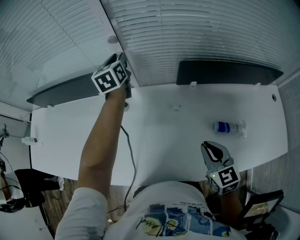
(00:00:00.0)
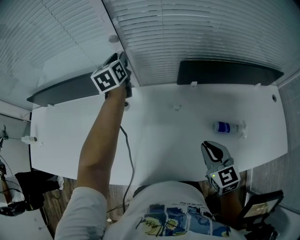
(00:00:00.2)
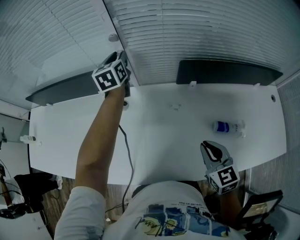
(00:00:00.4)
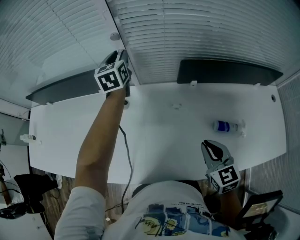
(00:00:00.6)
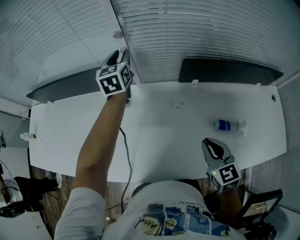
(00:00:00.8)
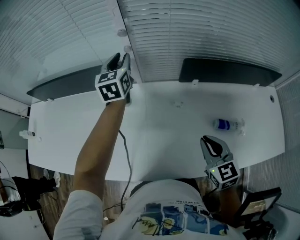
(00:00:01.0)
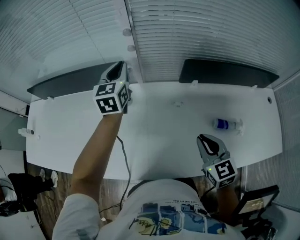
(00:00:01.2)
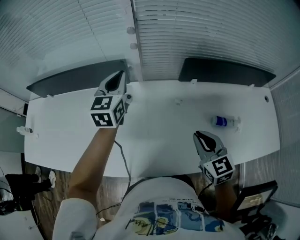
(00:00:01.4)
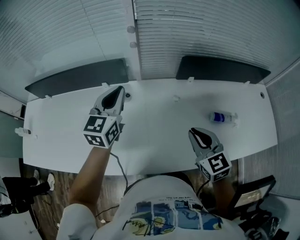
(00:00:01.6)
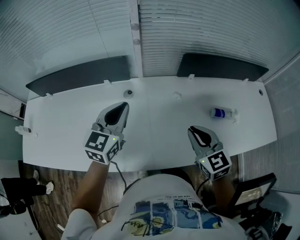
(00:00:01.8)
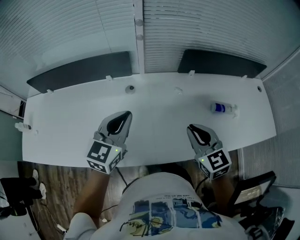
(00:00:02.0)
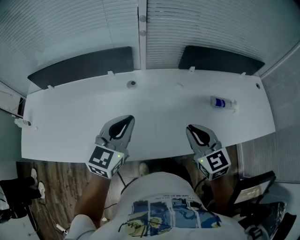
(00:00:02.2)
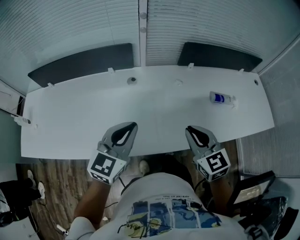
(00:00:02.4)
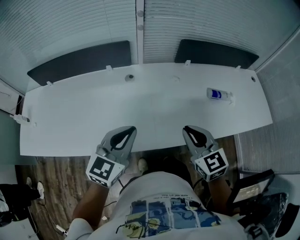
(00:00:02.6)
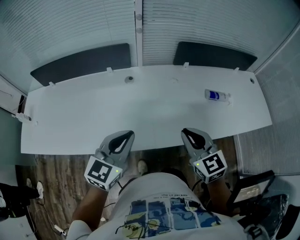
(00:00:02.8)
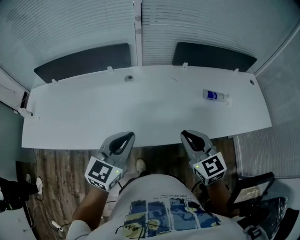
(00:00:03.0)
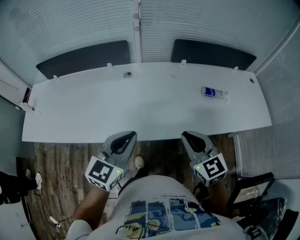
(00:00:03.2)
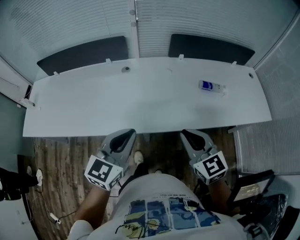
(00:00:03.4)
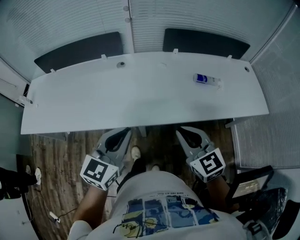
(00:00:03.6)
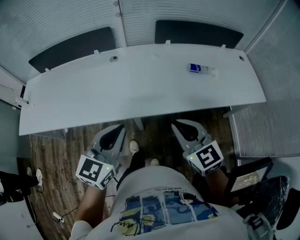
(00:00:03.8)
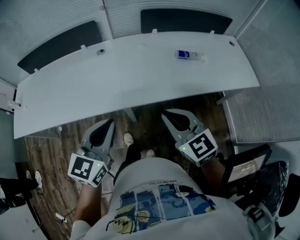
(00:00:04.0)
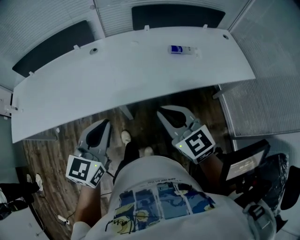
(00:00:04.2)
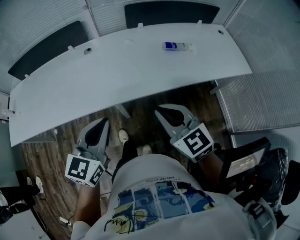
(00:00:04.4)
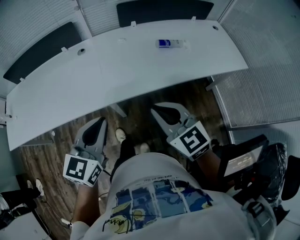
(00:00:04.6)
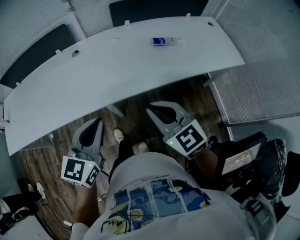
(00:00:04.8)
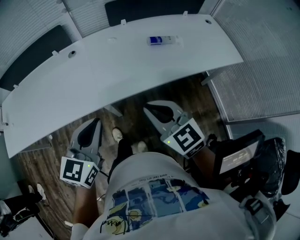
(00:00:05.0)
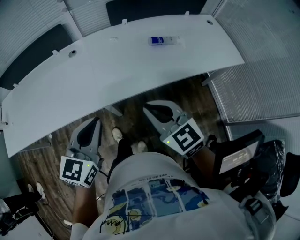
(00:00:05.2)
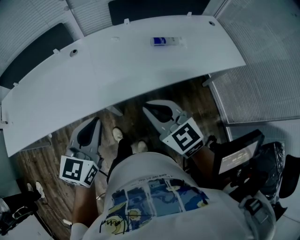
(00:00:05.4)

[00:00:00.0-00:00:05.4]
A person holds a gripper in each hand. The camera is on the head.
00:00:00.0 to 00:00:01.4: The left gripper is displaced backward by roughly 15 cm, and closes. The right gripper shifts approximately 5 cm to the left.
00:00:01.4 to 00:00:02.8: The right gripper is displaced backward and to the left by about 20 cm. Meanwhile the left gripper travels backward by some 35 cm, and rotates about 20 degrees.
00:00:02.8 to 00:00:04.0: Both grippers travel together backward and to the right, some 20 cm.
00:00:04.0 to 00:00:05.4: The left gripper changes place by roughly 5 cm.

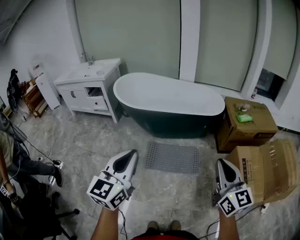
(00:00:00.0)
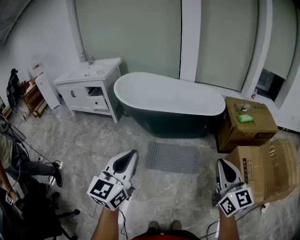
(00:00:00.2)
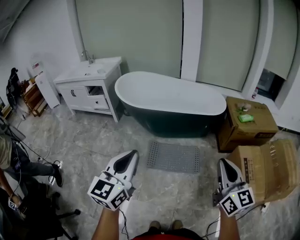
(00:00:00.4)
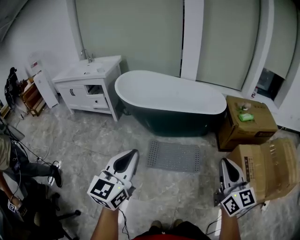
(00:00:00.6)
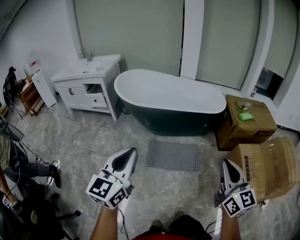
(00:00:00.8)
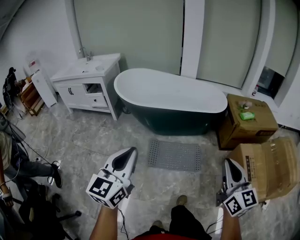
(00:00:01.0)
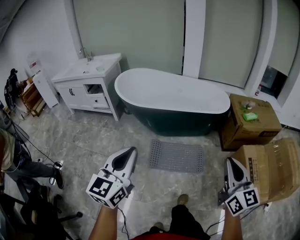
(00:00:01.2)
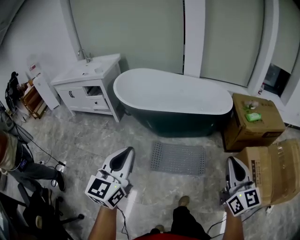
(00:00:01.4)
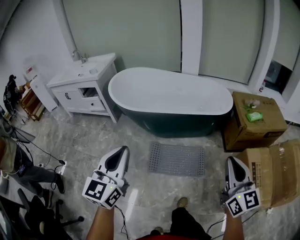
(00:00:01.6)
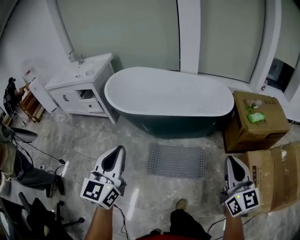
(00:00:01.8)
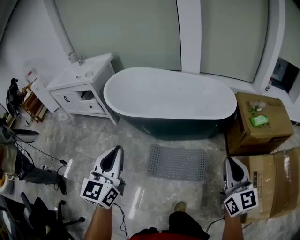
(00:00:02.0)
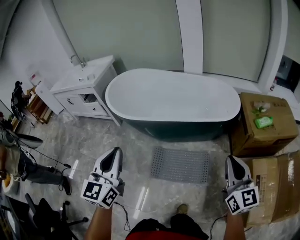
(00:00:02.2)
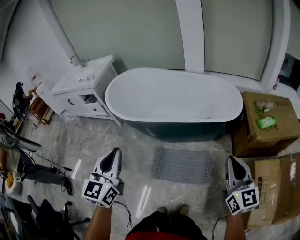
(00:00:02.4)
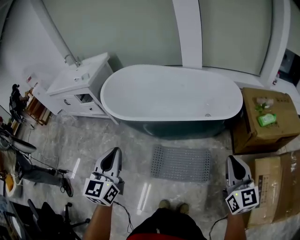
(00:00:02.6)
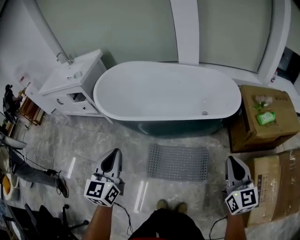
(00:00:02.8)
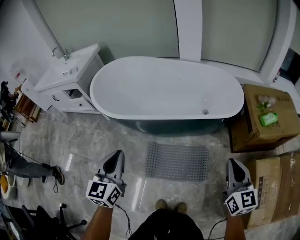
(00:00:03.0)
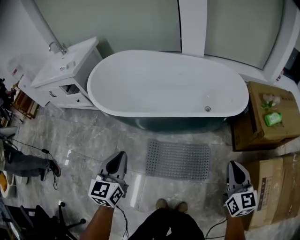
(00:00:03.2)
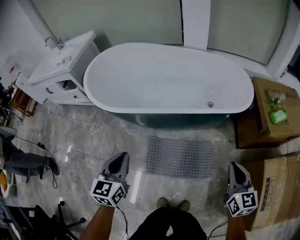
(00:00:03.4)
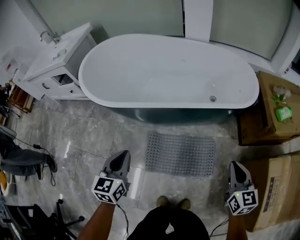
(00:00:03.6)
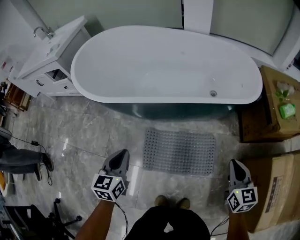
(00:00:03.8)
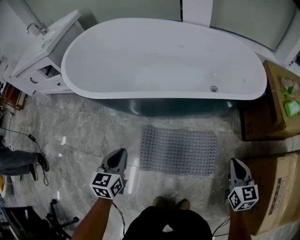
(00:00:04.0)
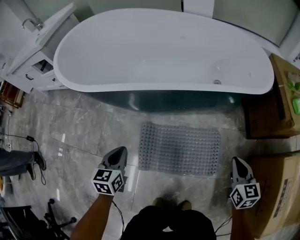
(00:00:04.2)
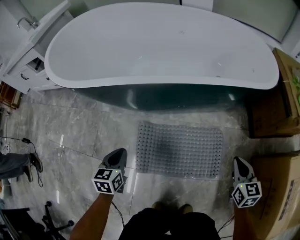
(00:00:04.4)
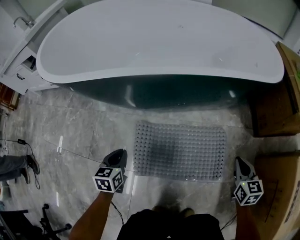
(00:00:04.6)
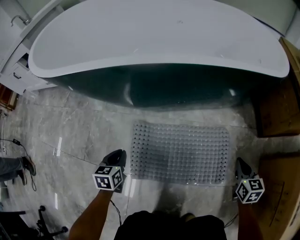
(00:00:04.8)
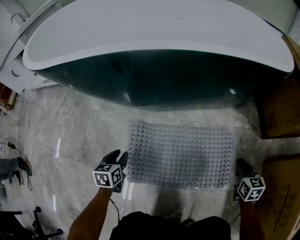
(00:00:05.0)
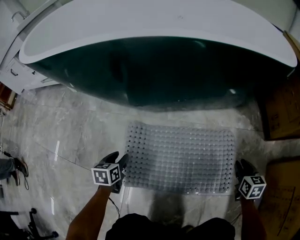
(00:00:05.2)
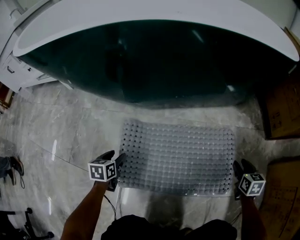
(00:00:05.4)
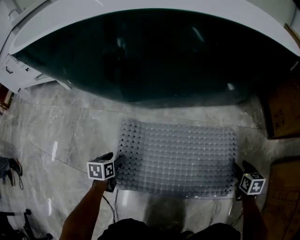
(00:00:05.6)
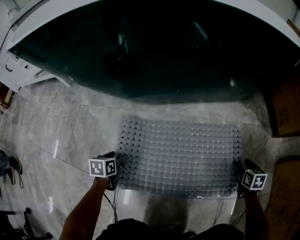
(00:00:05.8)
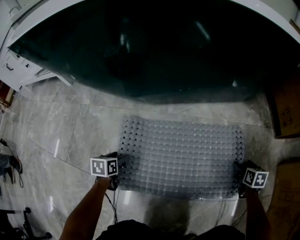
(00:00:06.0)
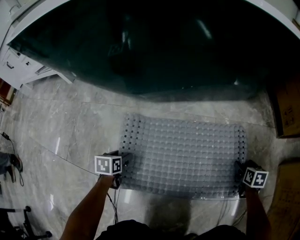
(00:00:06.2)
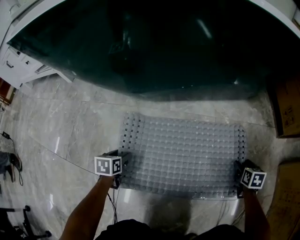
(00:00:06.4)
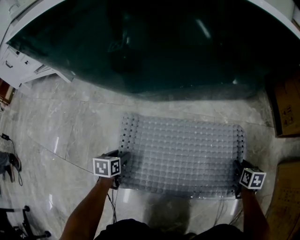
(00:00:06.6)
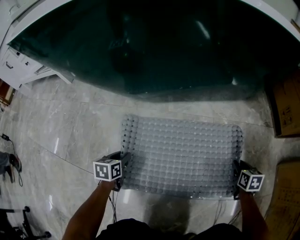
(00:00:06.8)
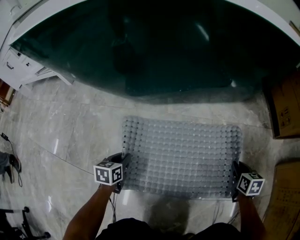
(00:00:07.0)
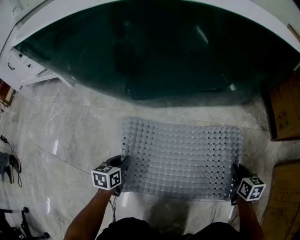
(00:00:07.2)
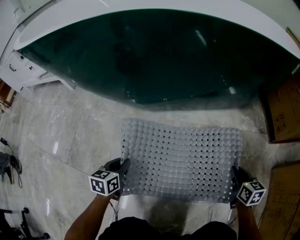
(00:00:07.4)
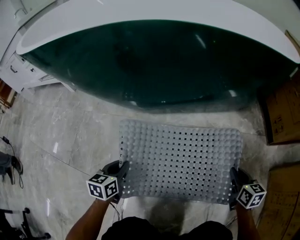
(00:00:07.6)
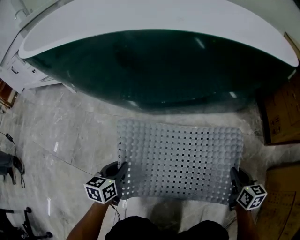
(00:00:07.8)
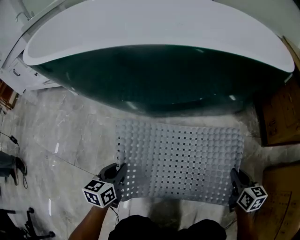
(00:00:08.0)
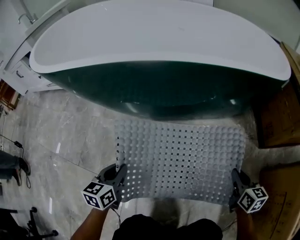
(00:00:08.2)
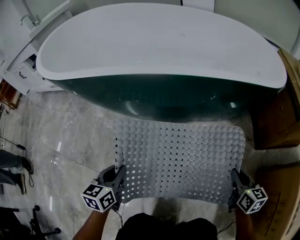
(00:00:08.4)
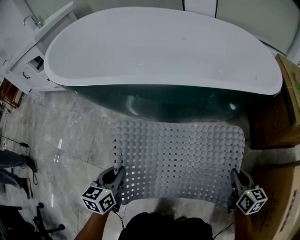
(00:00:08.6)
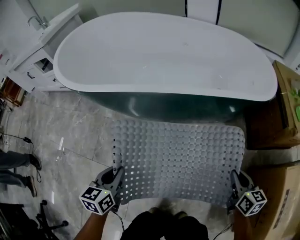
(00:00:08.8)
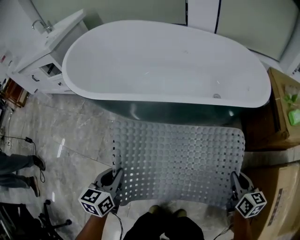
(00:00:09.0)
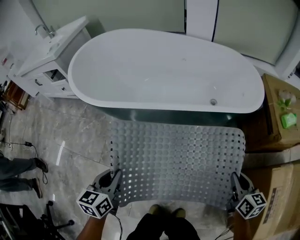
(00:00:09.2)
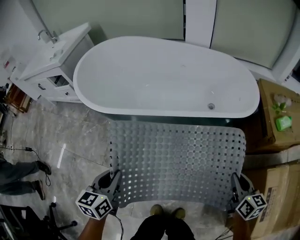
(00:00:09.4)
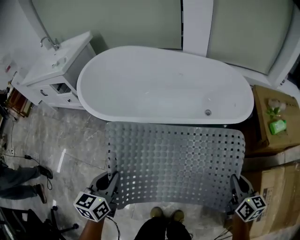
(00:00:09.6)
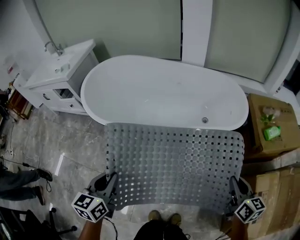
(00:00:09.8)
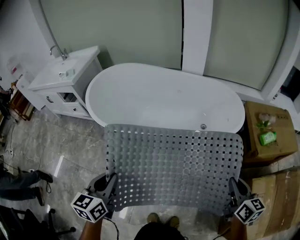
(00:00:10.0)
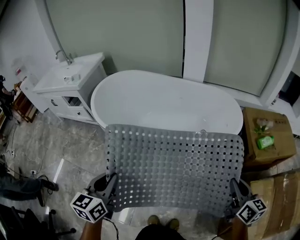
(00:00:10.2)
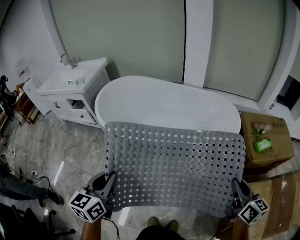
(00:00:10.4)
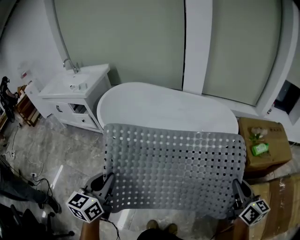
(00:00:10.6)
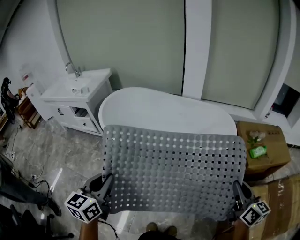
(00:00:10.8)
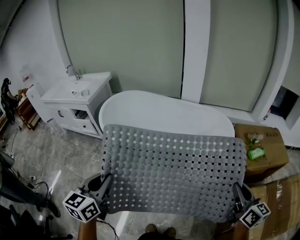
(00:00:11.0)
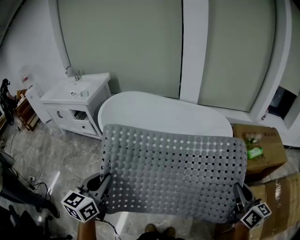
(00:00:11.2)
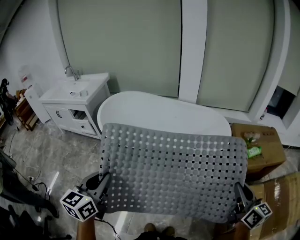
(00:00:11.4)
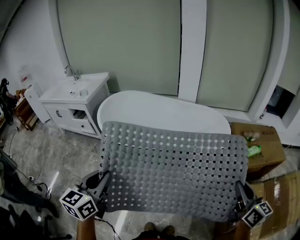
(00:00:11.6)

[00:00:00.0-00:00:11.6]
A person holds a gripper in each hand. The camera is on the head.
00:00:00.0 to 00:00:01.4: The right gripper is displaced forward by about 10 cm; the left gripper goes roughly 10 cm forward and to the left.
00:00:01.4 to 00:00:02.8: The right gripper moves forward, to the right and downward, about 30 cm; the left gripper goes some 25 cm forward.
00:00:02.8 to 00:00:04.4: The grippers both shift downward by about 50 cm. The right gripper changes its angle by roughly 30 degrees; the left gripper points its fingers roughly 30 degrees further downward.
00:00:04.4 to 00:00:05.8: The two grippers go approximately 40 cm downward. The left gripper rotates some 20 degrees, and opens up. Meanwhile the right gripper rotates roughly 20 degrees, and opens.
00:00:05.8 to 00:00:07.2: The left gripper moves about 5 cm, and closes up. Meanwhile the right gripper travels to the left and upward by roughly 5 cm, and closes its fingers.
00:00:07.2 to 00:00:08.8: The grippers both shift upward by about 40 cm.
00:00:08.8 to 00:00:10.2: The two grippers go some 40 cm upward.
00:00:10.2 to 00:00:11.6: Both grippers travel together upward and backward, roughly 15 cm.

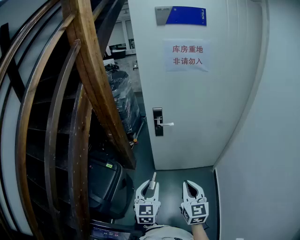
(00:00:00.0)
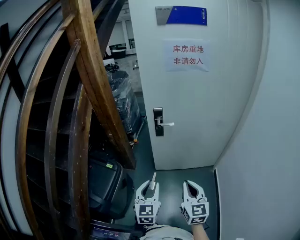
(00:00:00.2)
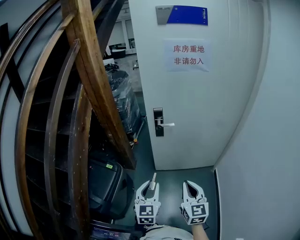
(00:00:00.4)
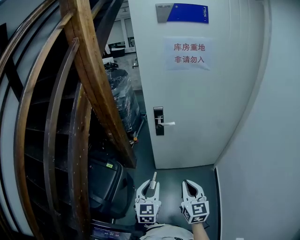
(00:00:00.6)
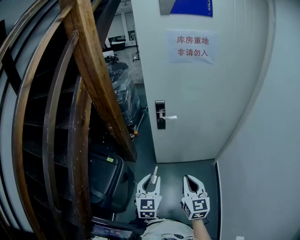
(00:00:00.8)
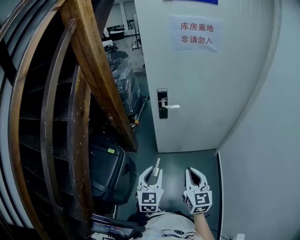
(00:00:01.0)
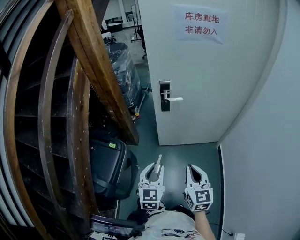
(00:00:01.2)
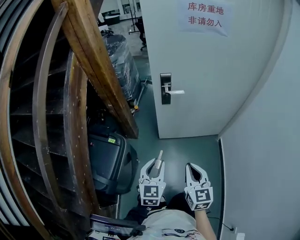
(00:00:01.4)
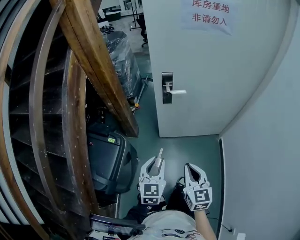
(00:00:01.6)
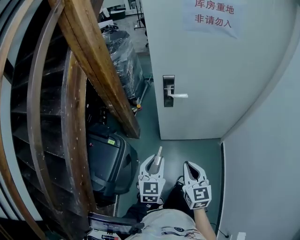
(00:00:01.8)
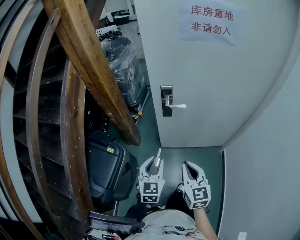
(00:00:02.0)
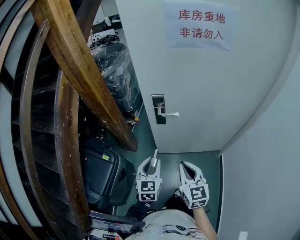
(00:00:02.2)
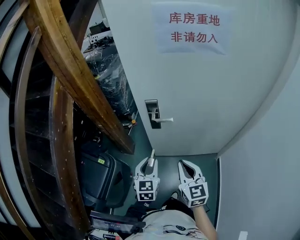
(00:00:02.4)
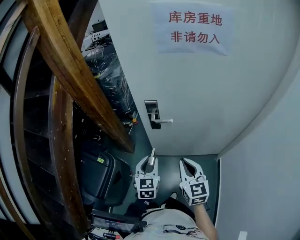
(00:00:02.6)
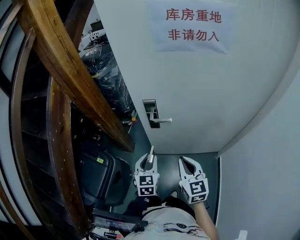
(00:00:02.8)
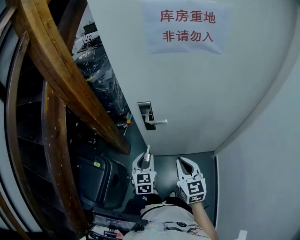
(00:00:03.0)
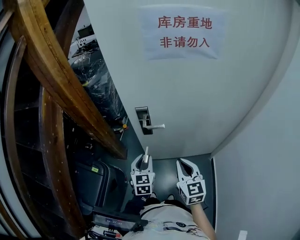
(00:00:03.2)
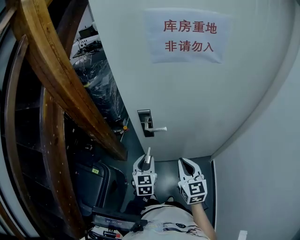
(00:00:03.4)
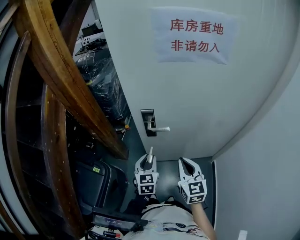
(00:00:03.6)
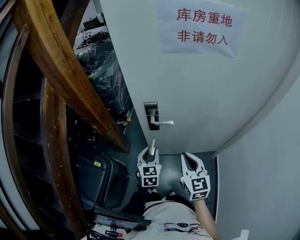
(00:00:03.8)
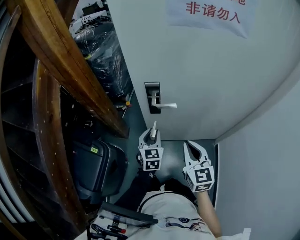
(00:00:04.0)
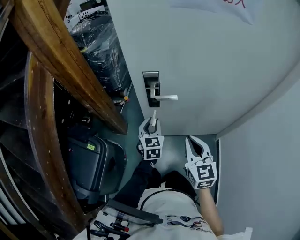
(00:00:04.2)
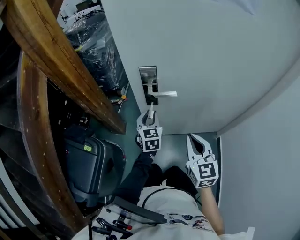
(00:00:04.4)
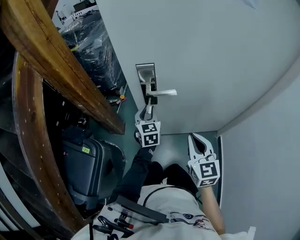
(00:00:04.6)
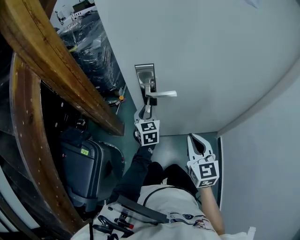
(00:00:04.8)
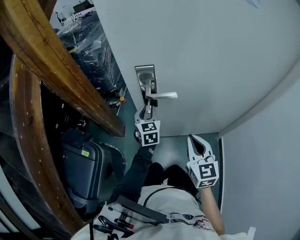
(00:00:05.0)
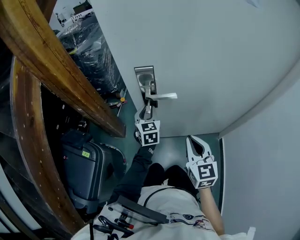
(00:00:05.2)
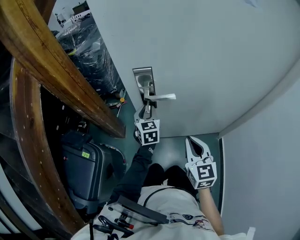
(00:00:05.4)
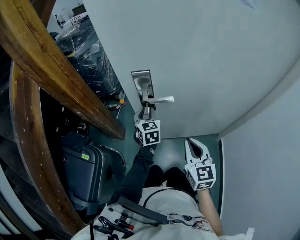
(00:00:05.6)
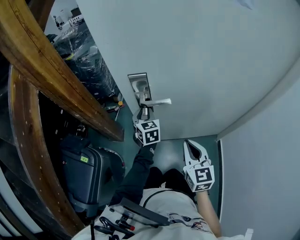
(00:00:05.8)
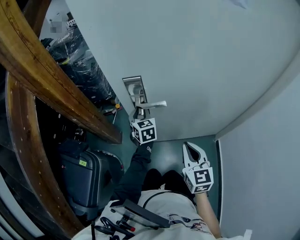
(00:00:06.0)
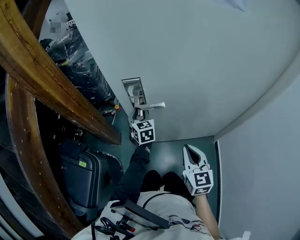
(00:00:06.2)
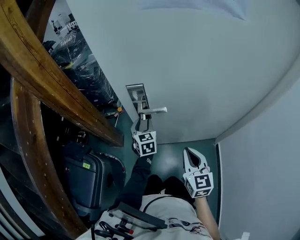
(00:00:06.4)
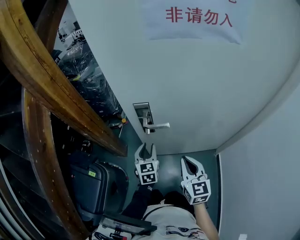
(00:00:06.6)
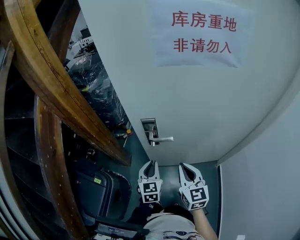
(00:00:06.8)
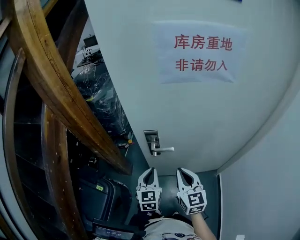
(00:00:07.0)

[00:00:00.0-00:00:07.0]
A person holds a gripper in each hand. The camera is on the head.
00:00:00.0 to 00:00:01.4: The left gripper ends up approximately 10 cm from where it was. The right gripper goes approximately 10 cm to the left and downward.
00:00:01.4 to 00:00:02.8: Both grippers travel together forward and to the right, roughly 25 cm.
00:00:02.8 to 00:00:04.2: The right gripper shifts roughly 5 cm downward. The left gripper travels forward and downward by approximately 15 cm.
00:00:04.2 to 00:00:05.6: The right gripper travels downward by roughly 10 cm; the left gripper shifts some 10 cm forward.
00:00:05.6 to 00:00:07.0: The right gripper is displaced upward by about 15 cm. The left gripper heads upward and backward, covering approximately 20 cm, and closes up.
